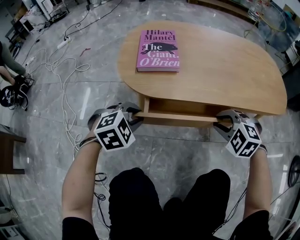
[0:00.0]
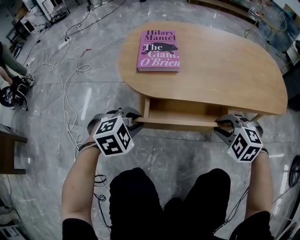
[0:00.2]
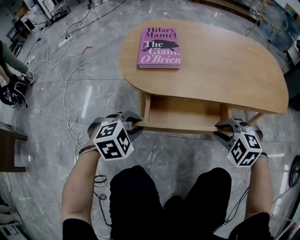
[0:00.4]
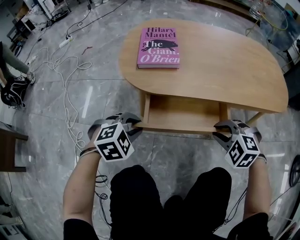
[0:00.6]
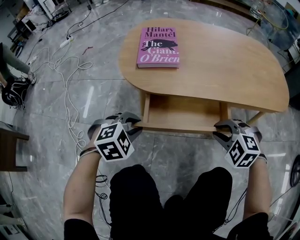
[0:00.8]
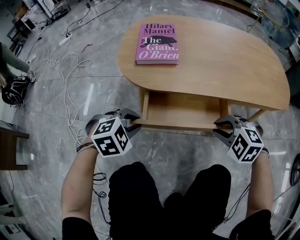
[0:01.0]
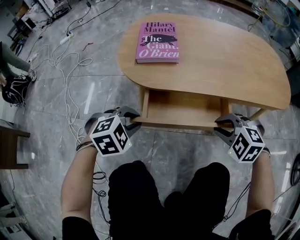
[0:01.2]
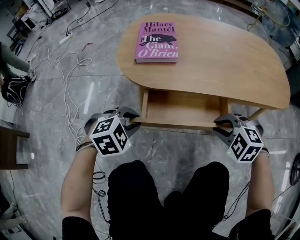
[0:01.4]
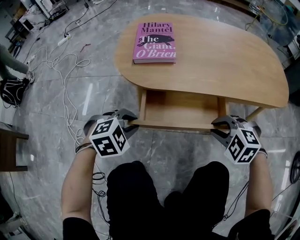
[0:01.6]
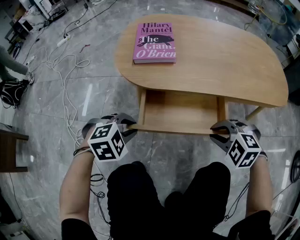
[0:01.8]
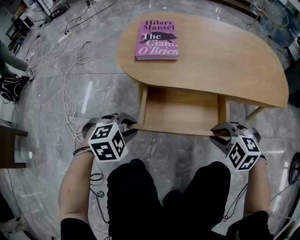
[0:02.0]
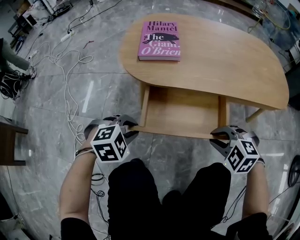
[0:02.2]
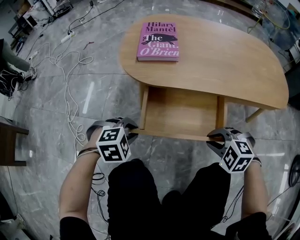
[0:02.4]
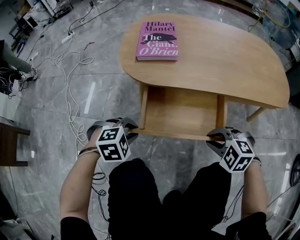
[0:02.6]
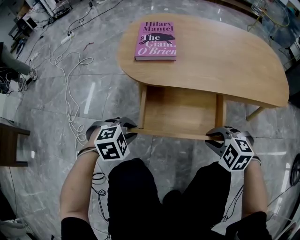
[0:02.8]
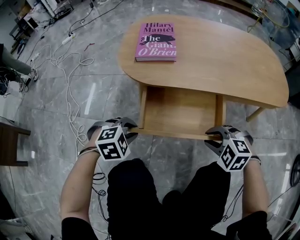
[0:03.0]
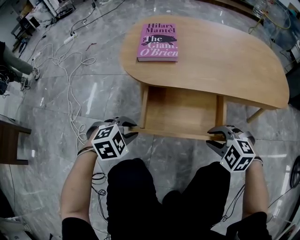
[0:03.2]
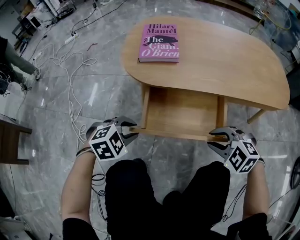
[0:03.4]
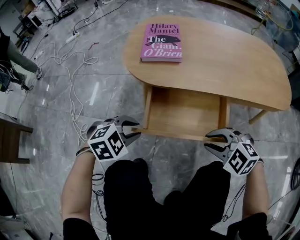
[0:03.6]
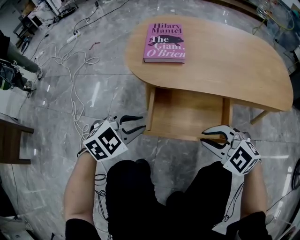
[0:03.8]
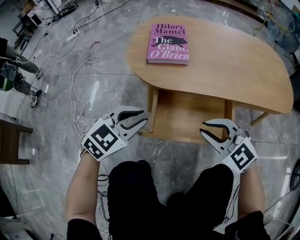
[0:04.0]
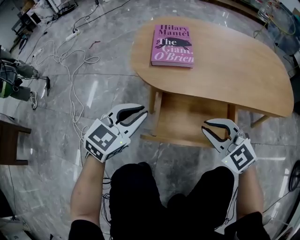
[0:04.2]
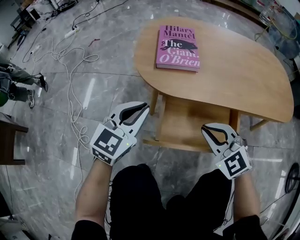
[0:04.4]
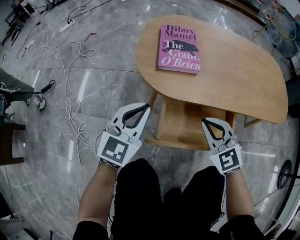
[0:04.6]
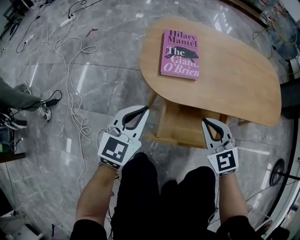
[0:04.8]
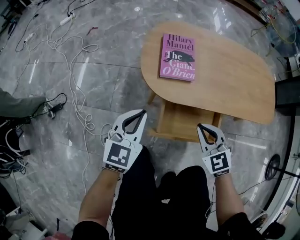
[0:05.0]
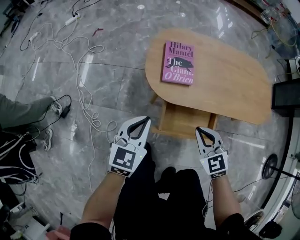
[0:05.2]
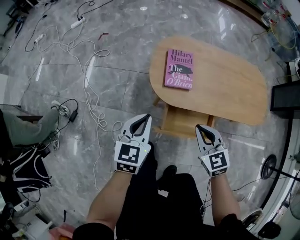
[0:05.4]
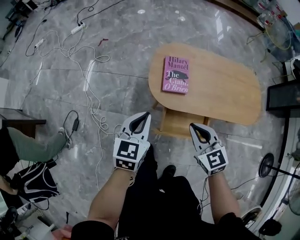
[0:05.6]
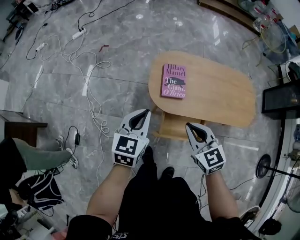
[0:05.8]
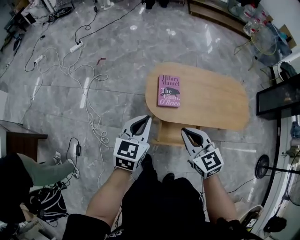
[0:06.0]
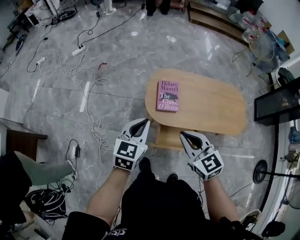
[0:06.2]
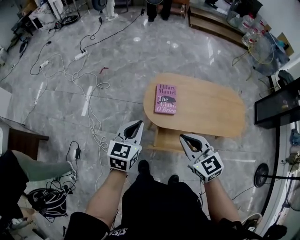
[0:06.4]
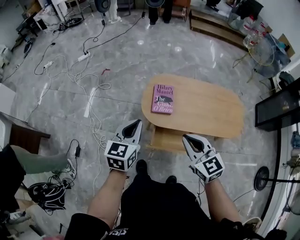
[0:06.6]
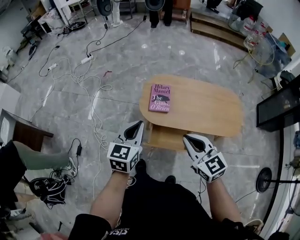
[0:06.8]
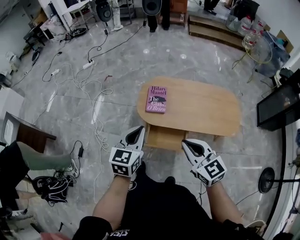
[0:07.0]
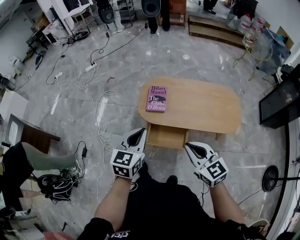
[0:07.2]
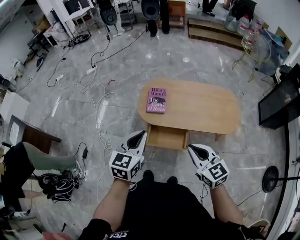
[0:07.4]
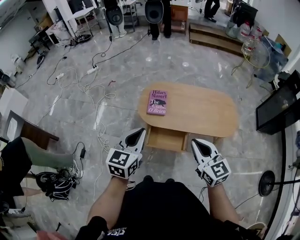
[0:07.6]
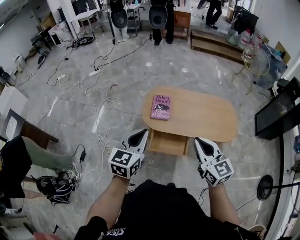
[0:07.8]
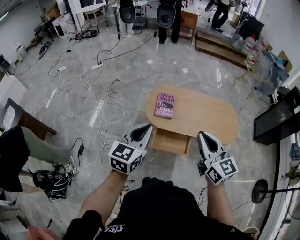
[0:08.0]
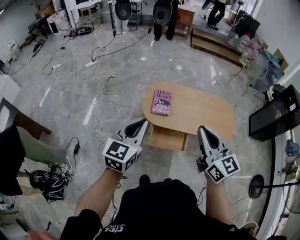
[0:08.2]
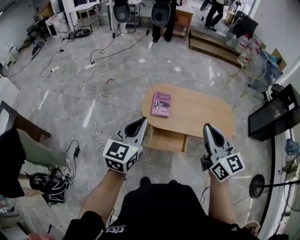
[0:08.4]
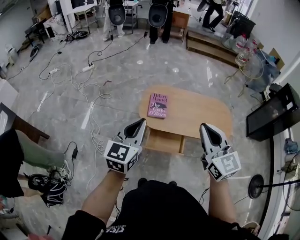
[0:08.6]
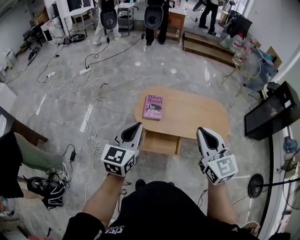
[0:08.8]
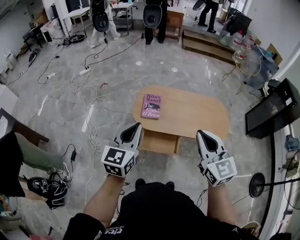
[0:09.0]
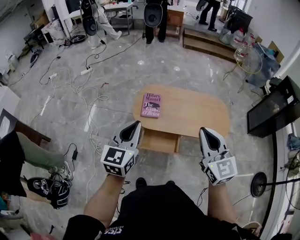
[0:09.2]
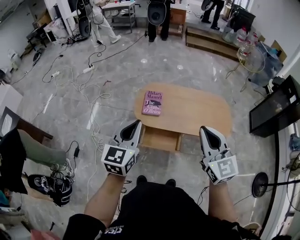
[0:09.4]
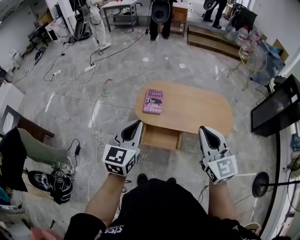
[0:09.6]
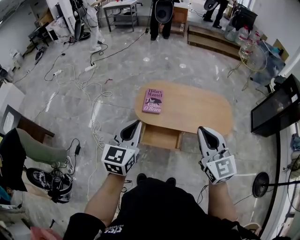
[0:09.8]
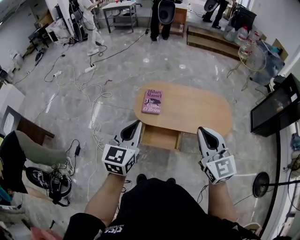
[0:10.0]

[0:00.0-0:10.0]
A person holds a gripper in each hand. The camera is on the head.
0.0 to 1.4 s: The left gripper ends up roughly 5 cm from where it was.
1.4 to 2.8 s: The grippers both shift backward by approximately 5 cm.
2.8 to 4.2 s: The left gripper is displaced upward and forward by approximately 15 cm, and angles its fingers upward, by approximately 40 degrees, while the right gripper travels upward, to the left and forward by some 15 cm, and tilts its fingers roughly 30 degrees upward.
4.2 to 5.8 s: The grippers both shift upward by about 40 cm. The left gripper changes its angle by roughly 30 degrees. The right gripper changes its angle by about 30 degrees.
5.8 to 7.2 s: The grippers both shift backward, to the right and upward by some 25 cm.
7.2 to 8.6 s: The left gripper goes approximately 15 cm to the left and upward; the right gripper shifts about 15 cm upward, and turns by roughly 20 degrees.
8.6 to 10.0 s: Both grippers travel together to the right, roughly 10 cm.

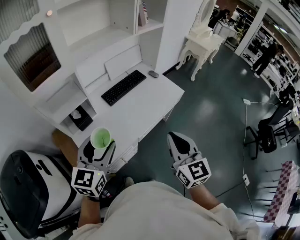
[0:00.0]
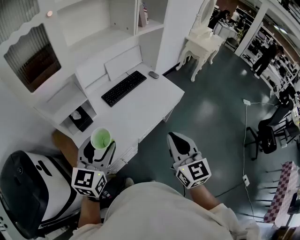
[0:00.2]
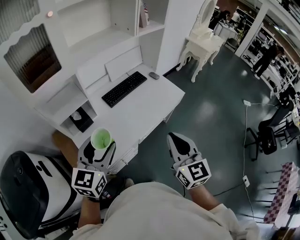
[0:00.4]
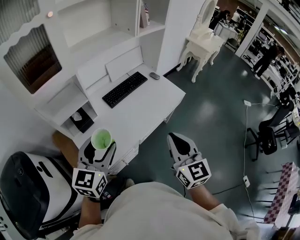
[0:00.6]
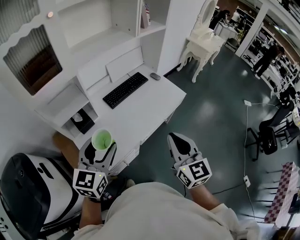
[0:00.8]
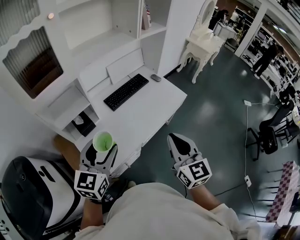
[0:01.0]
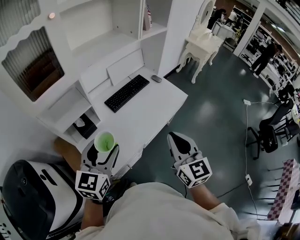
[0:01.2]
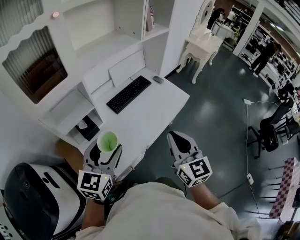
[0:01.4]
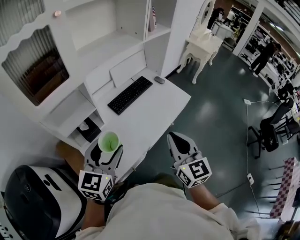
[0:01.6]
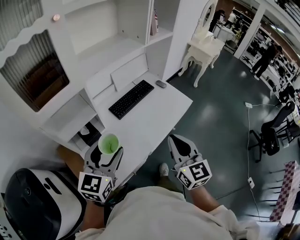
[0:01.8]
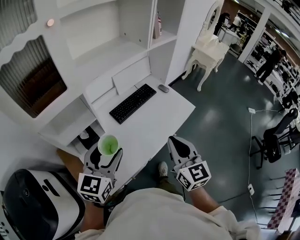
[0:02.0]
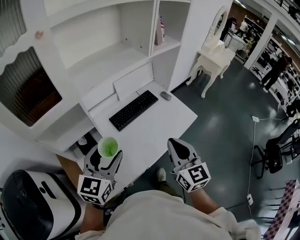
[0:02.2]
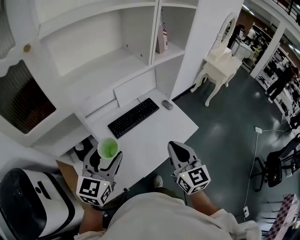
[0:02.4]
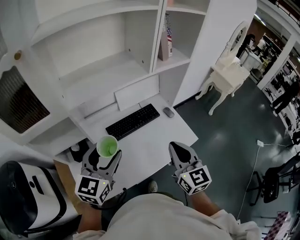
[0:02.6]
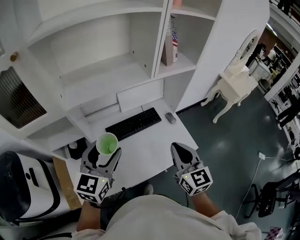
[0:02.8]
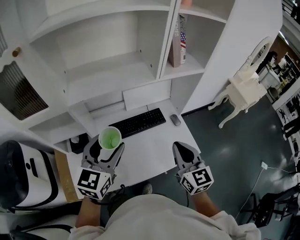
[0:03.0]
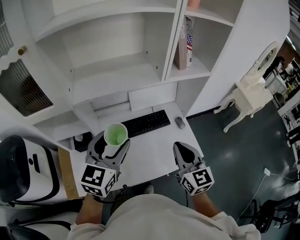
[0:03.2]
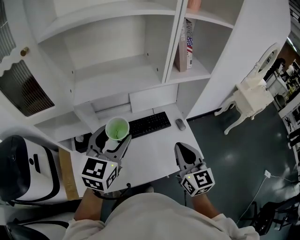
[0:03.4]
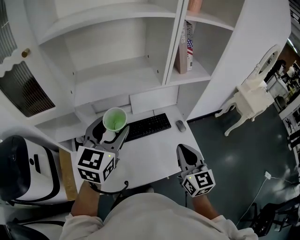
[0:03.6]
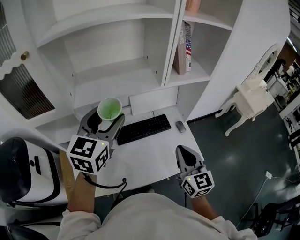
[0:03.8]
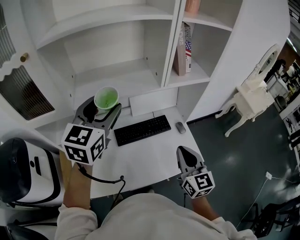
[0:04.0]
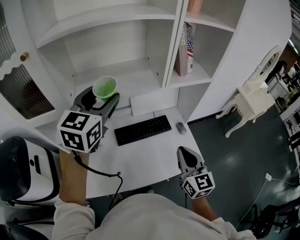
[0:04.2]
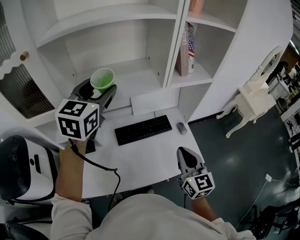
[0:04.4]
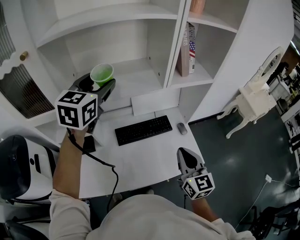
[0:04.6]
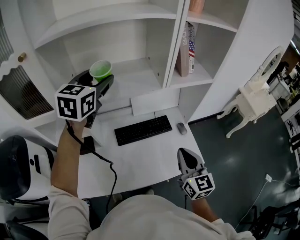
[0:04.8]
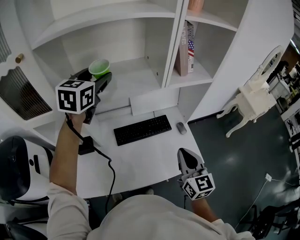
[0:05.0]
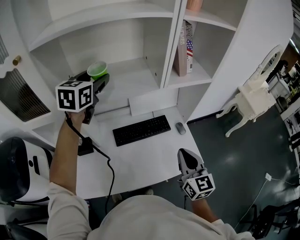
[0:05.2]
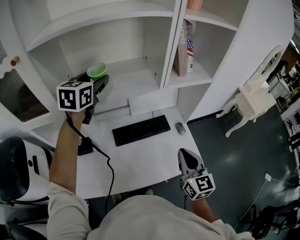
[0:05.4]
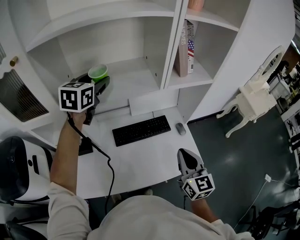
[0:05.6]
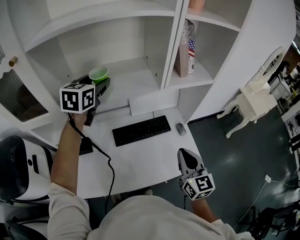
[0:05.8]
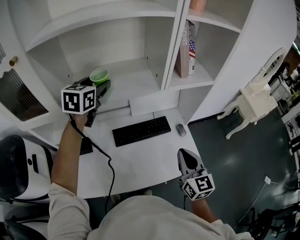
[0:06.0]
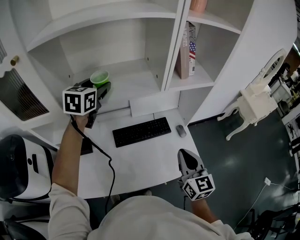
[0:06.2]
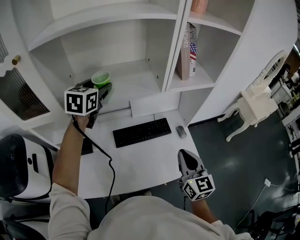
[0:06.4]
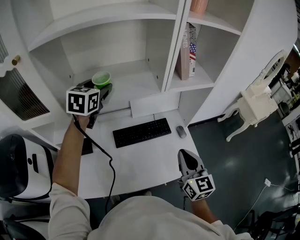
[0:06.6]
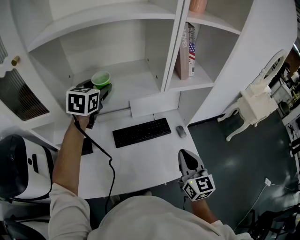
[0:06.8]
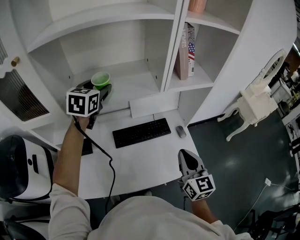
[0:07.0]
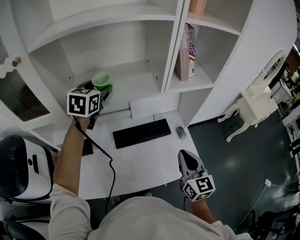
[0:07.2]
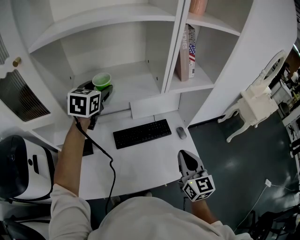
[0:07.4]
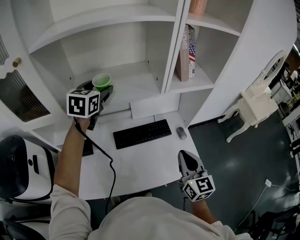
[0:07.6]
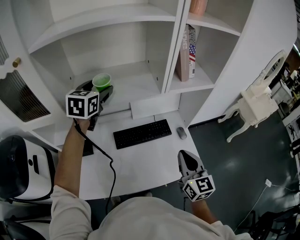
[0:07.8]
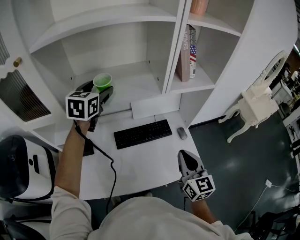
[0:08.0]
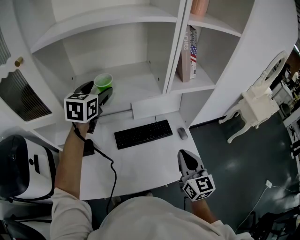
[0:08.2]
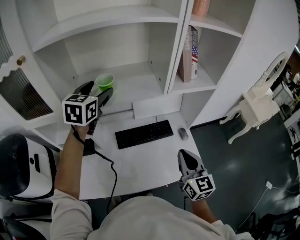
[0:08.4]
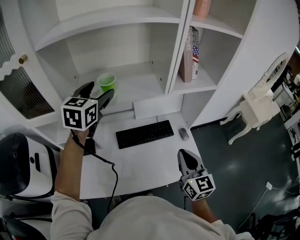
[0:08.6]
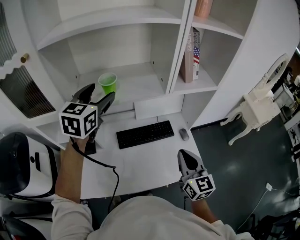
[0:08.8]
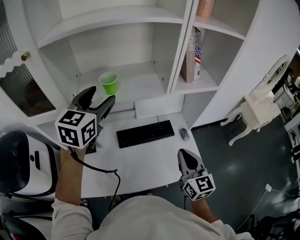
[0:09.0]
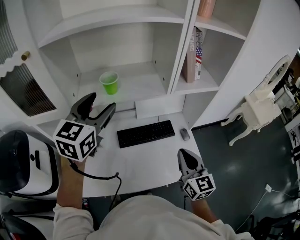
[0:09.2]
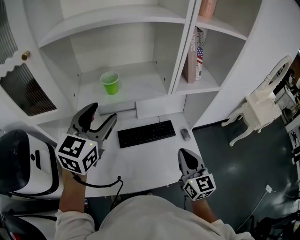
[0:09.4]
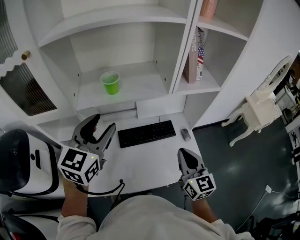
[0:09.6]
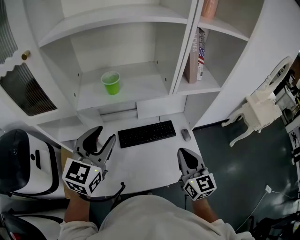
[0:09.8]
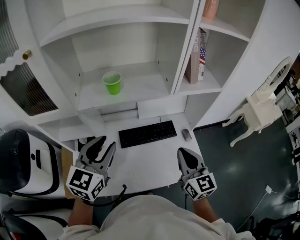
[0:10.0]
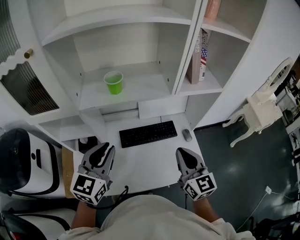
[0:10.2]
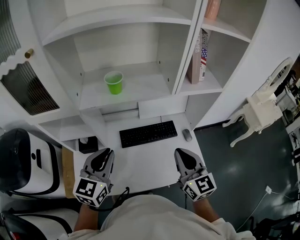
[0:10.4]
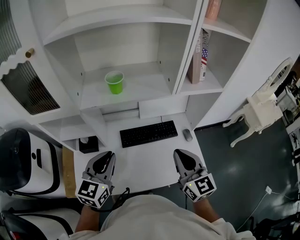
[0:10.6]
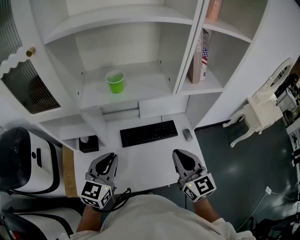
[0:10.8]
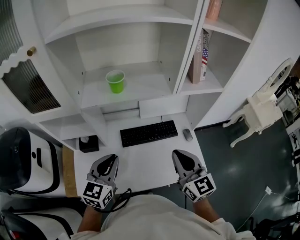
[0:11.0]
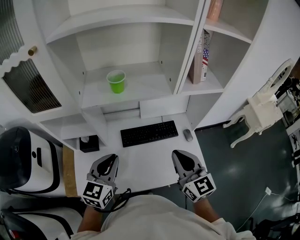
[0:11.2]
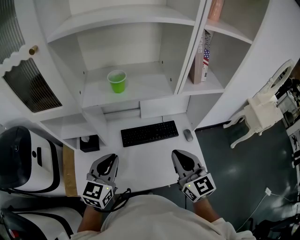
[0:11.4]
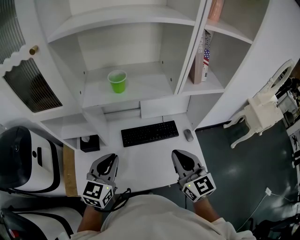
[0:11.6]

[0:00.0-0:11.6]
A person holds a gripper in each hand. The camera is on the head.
0.0 to 1.4 s: The left gripper moves about 5 cm. Meanwhile the right gripper moves to the left and forward, about 10 cm.
1.4 to 2.8 s: Both grippers move forward and to the right, about 30 cm.
2.8 to 4.4 s: The left gripper is displaced forward and upward by roughly 20 cm; the right gripper ends up about 5 cm from where it was.
4.4 to 5.8 s: The left gripper shifts approximately 10 cm forward and downward.
5.8 to 7.2 s: There are only small adjustments of the grippers.
7.2 to 8.8 s: The left gripper shifts some 5 cm backward.
8.8 to 10.2 s: The left gripper goes approximately 20 cm backward and downward, and closes its fingers.
10.2 to 11.6 s: The left gripper shifts some 5 cm downward.

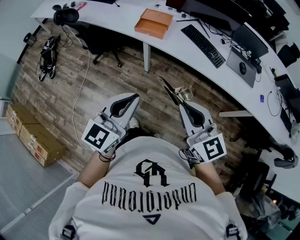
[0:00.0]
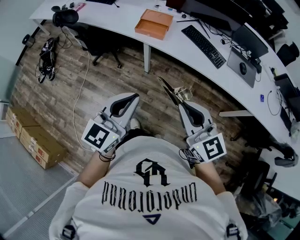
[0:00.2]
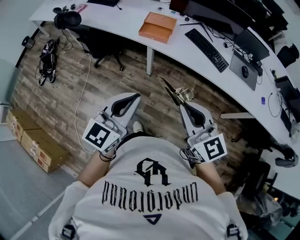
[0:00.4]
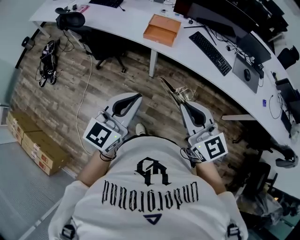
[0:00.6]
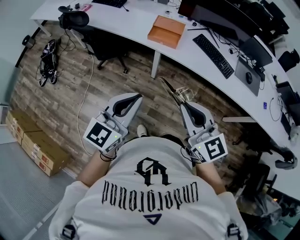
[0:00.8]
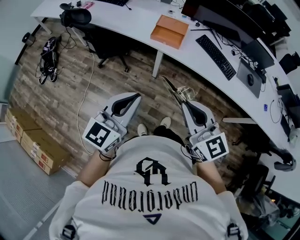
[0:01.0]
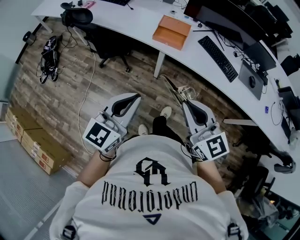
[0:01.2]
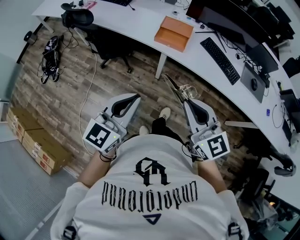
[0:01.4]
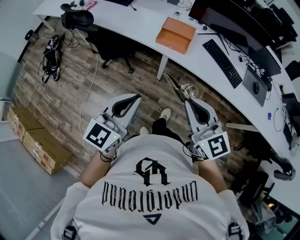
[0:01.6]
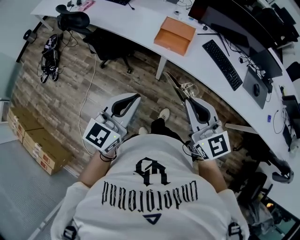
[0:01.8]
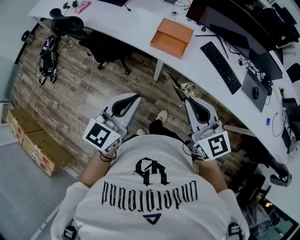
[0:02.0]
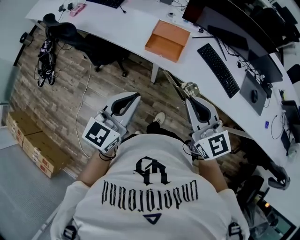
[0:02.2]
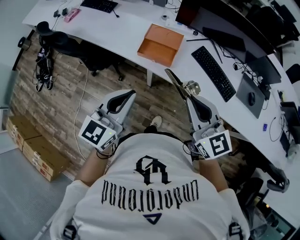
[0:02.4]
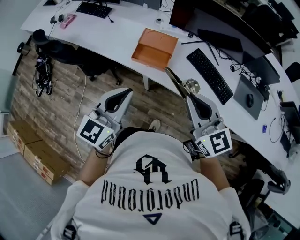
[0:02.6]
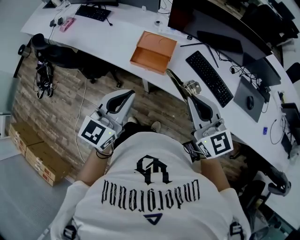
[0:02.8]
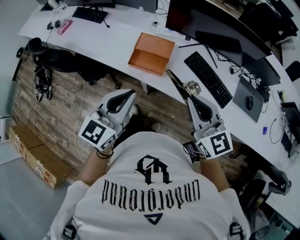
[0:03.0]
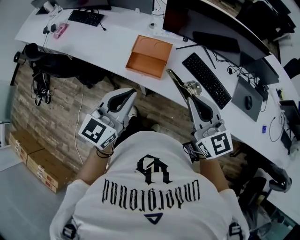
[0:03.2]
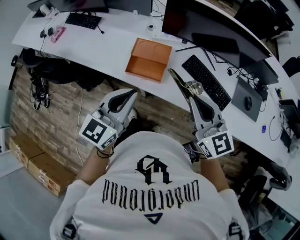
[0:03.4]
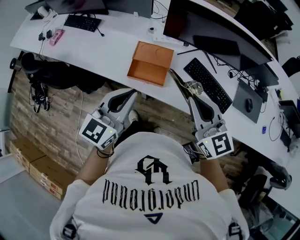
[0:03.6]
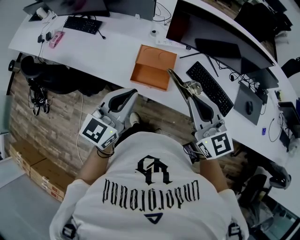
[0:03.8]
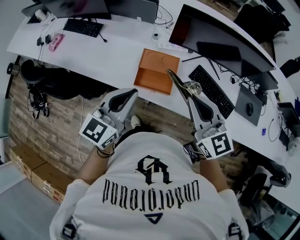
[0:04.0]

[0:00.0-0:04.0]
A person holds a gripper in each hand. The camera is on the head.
0.0 to 1.4 s: The grippers both shift to the left and forward by roughly 20 cm.
1.4 to 2.6 s: The two grippers go about 25 cm forward and to the right.
2.6 to 4.0 s: The left gripper shifts some 15 cm forward. Meanwhile the right gripper heads forward and to the left, covering about 15 cm.
